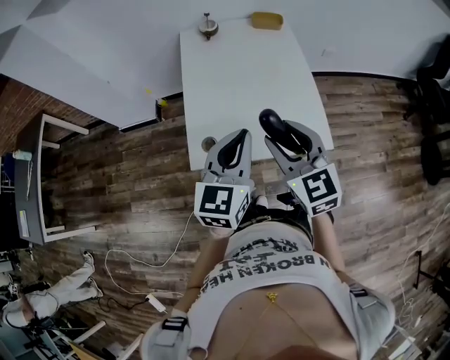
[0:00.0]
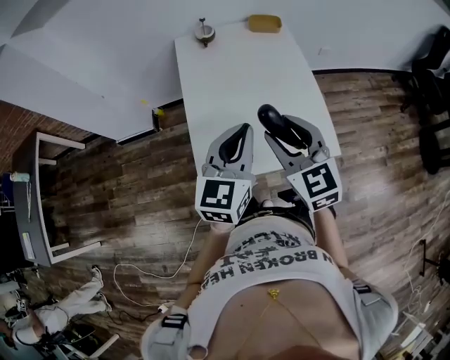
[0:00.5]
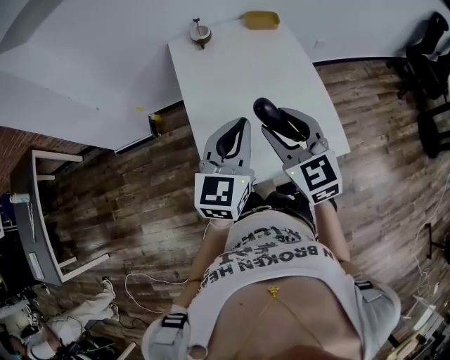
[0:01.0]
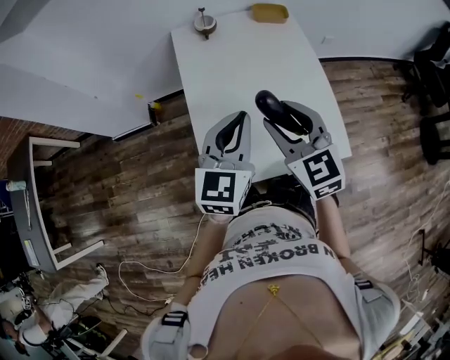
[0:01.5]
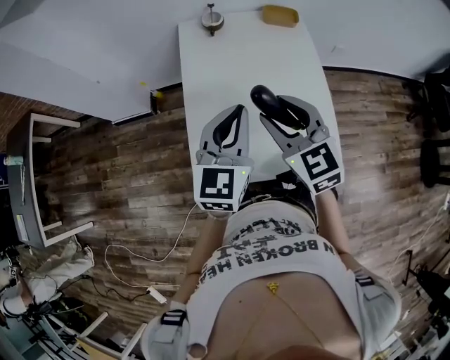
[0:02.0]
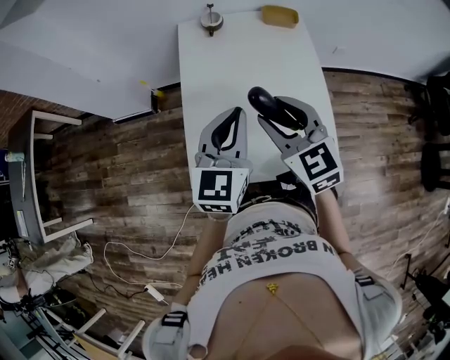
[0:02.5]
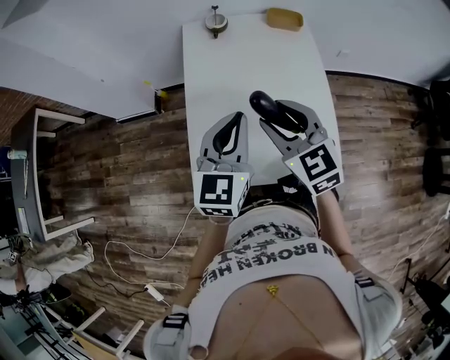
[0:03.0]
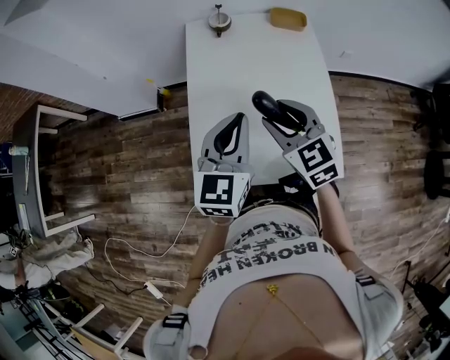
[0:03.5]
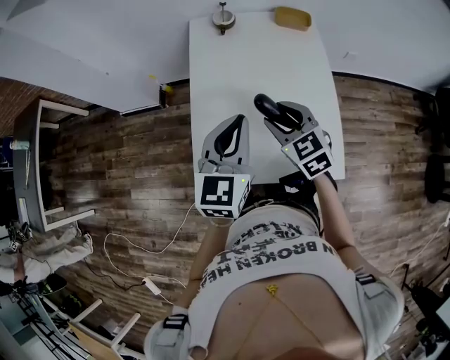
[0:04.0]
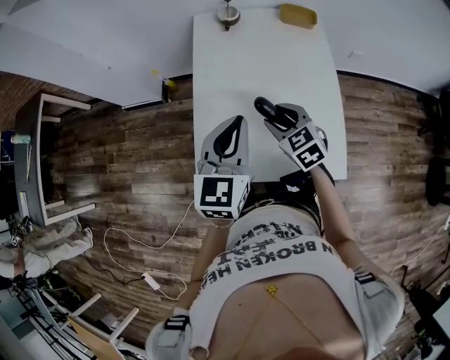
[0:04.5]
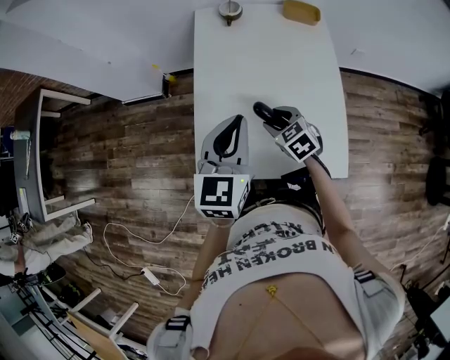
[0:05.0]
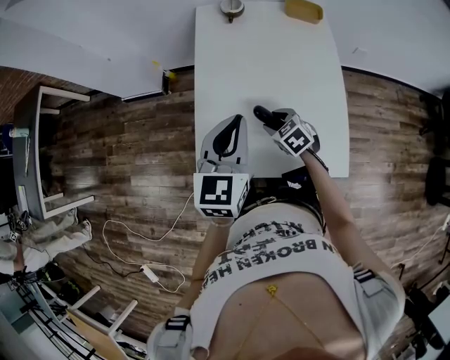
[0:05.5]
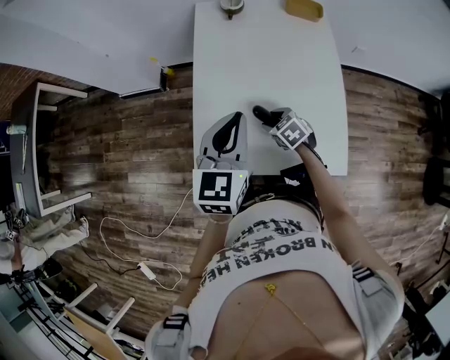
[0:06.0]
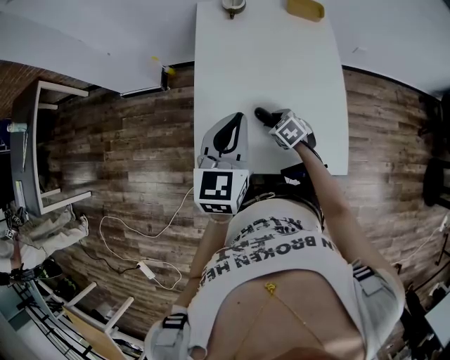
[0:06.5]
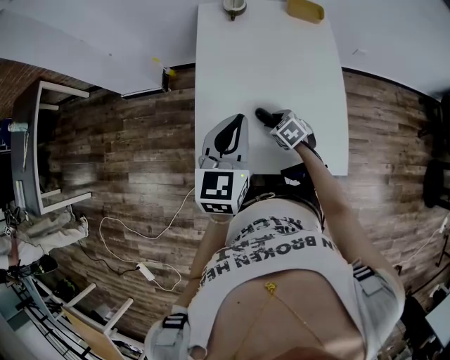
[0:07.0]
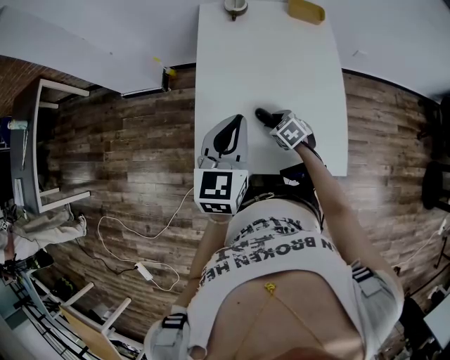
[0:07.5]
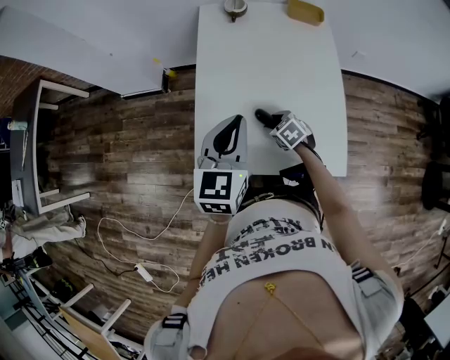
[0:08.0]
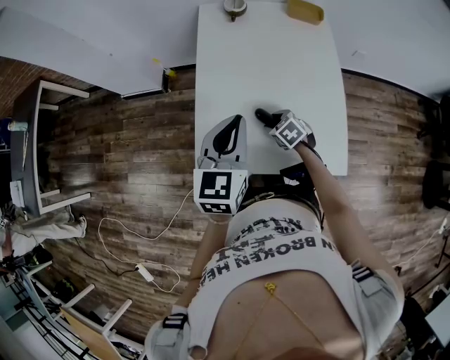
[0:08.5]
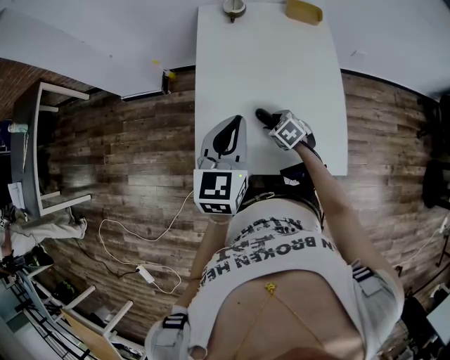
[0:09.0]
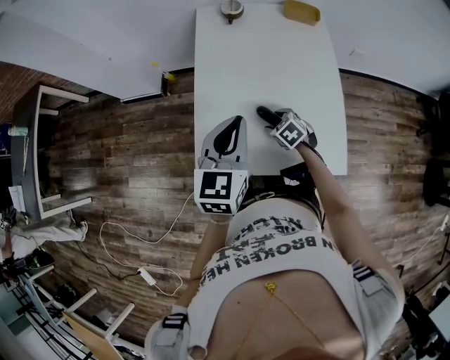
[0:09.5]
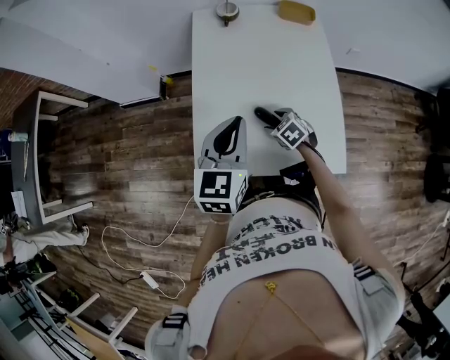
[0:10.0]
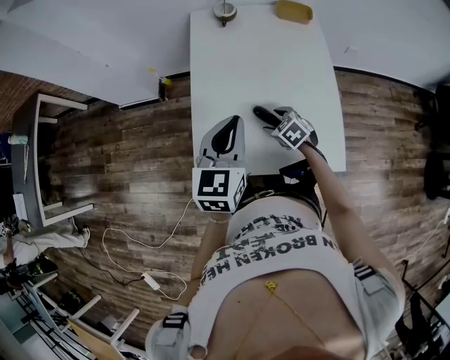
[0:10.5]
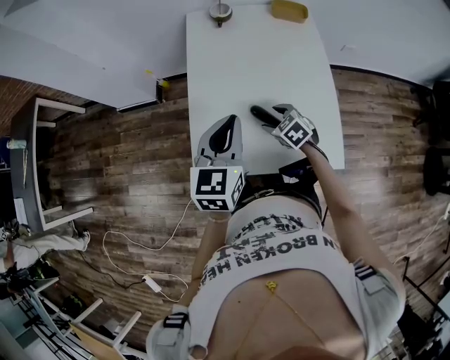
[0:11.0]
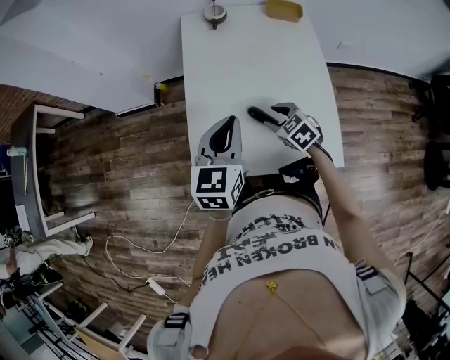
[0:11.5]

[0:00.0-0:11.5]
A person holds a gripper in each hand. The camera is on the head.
0.0 to 2.0 s: Both grippers travel together forward, some 20 cm.
2.0 to 4.0 s: The right gripper is displaced downward by about 10 cm.
4.0 to 6.0 s: The right gripper travels downward by roughly 20 cm, and changes its angle by some 30 degrees.
6.0 to 7.5 s: The grippers make only small movements.
7.5 to 9.5 s: Both grippers stay put.
9.5 to 11.5 s: The right gripper shifts some 10 cm upward.

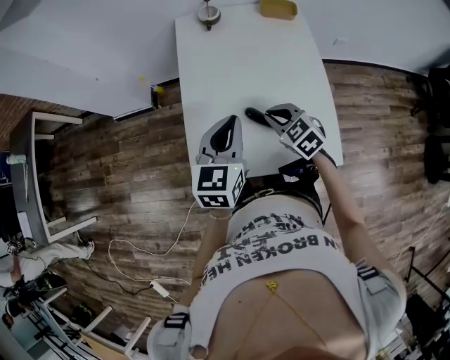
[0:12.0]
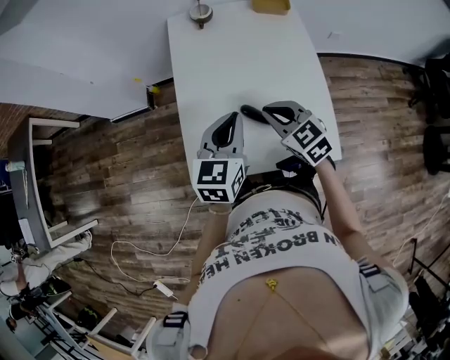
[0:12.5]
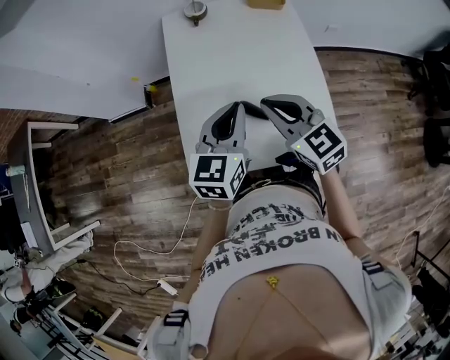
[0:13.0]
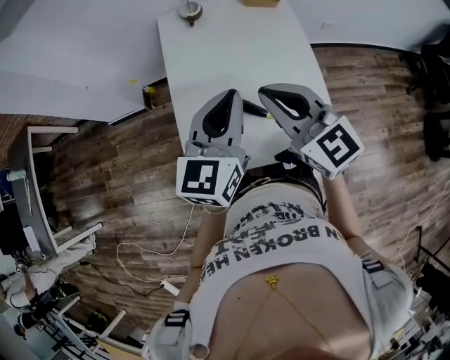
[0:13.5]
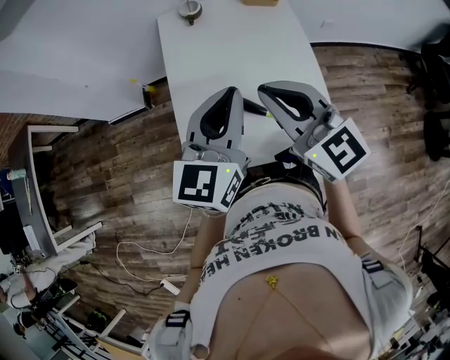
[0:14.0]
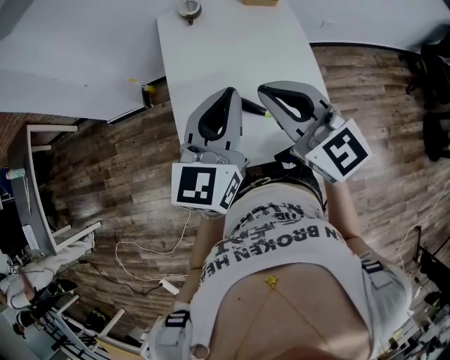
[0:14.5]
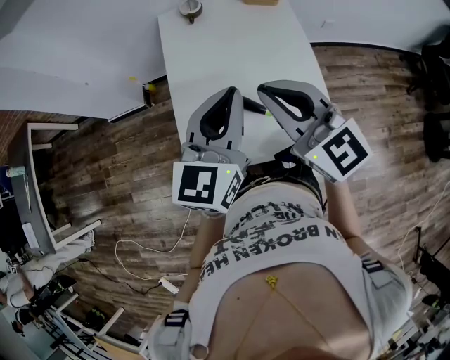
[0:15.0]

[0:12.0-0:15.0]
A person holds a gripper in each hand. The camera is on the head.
12.0 to 13.5 s: The left gripper is displaced upward by about 10 cm; the right gripper travels upward by some 20 cm, and points its fingers approximately 30 degrees further upward.
13.5 to 15.0 s: The grippers move only a little.

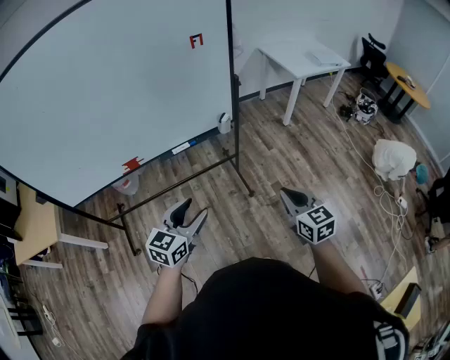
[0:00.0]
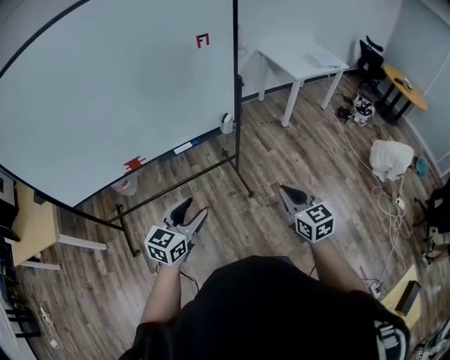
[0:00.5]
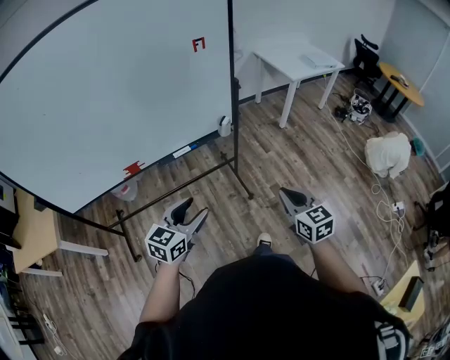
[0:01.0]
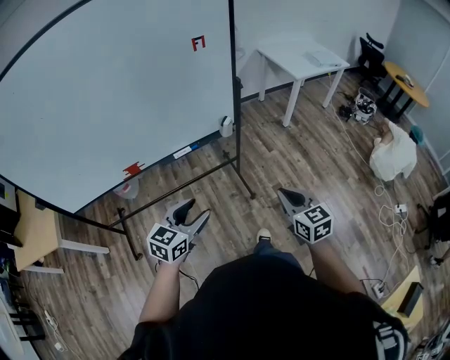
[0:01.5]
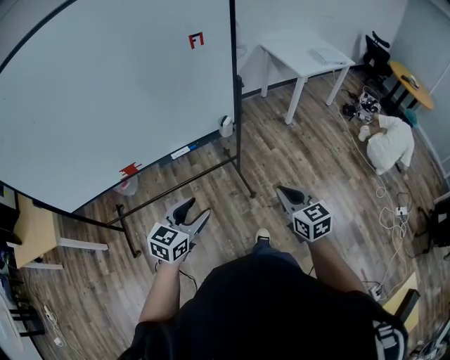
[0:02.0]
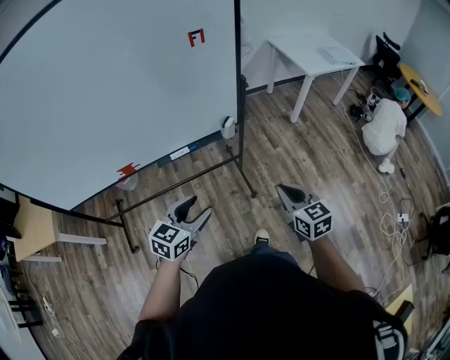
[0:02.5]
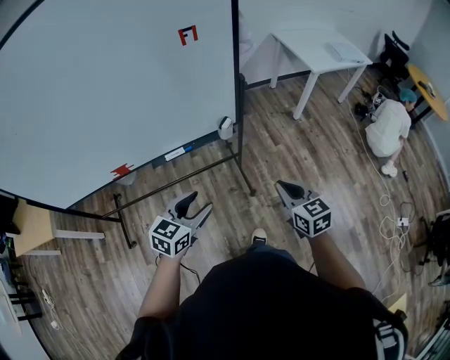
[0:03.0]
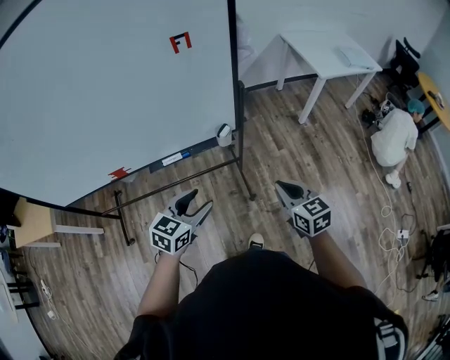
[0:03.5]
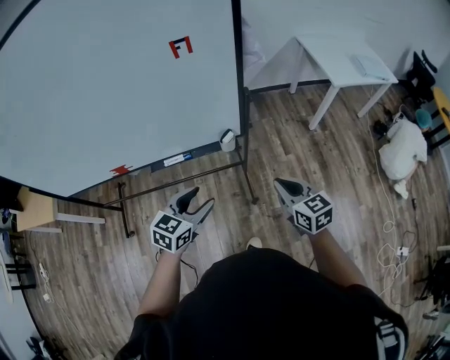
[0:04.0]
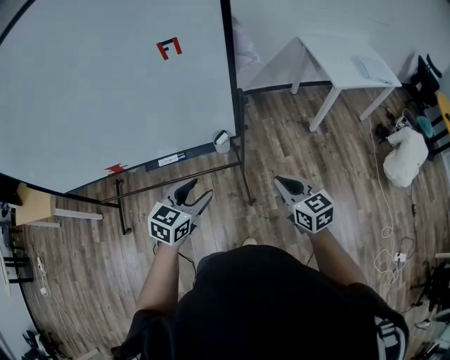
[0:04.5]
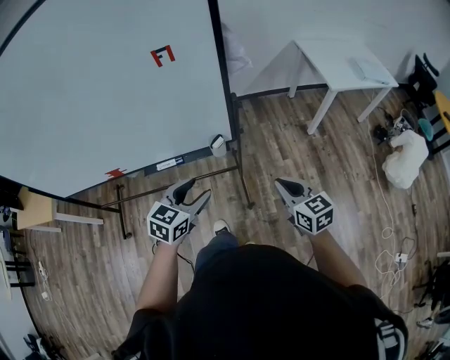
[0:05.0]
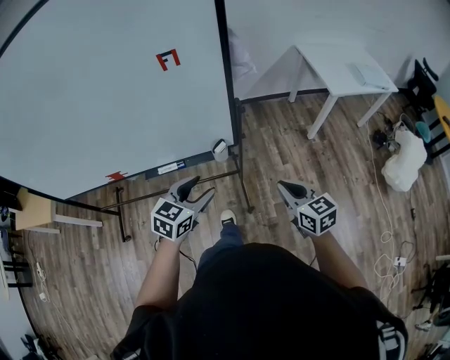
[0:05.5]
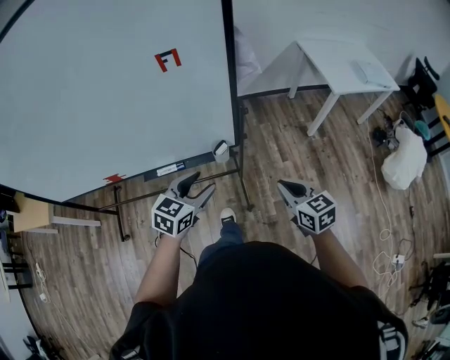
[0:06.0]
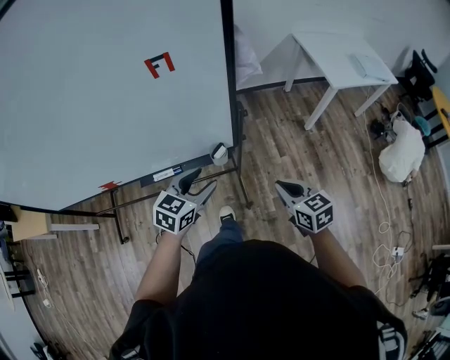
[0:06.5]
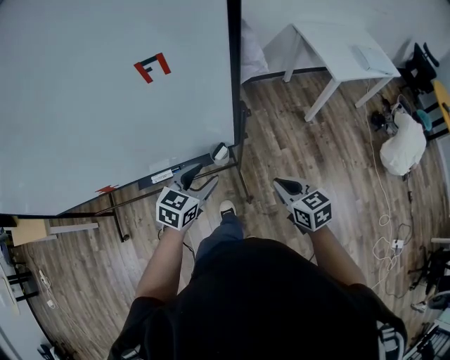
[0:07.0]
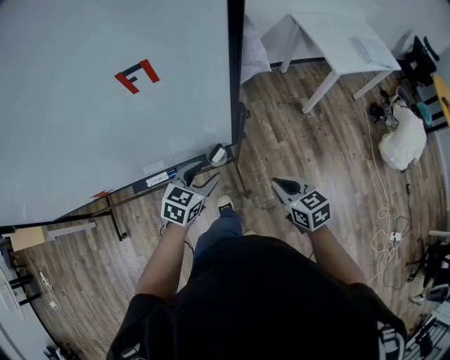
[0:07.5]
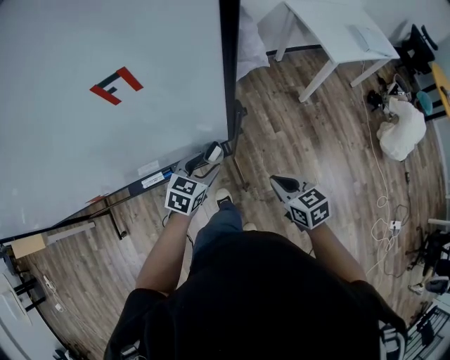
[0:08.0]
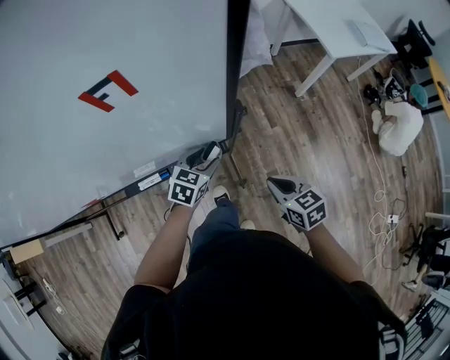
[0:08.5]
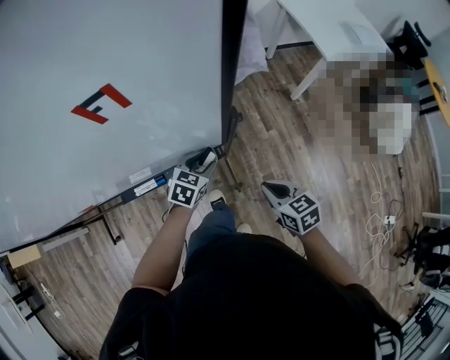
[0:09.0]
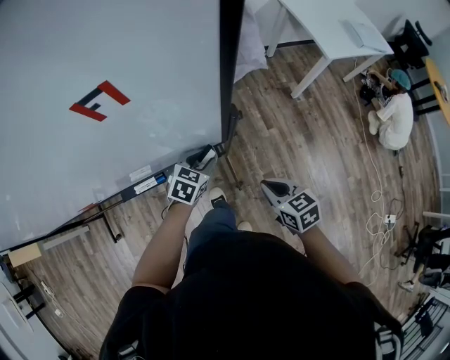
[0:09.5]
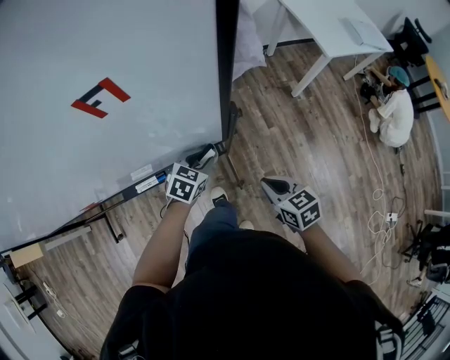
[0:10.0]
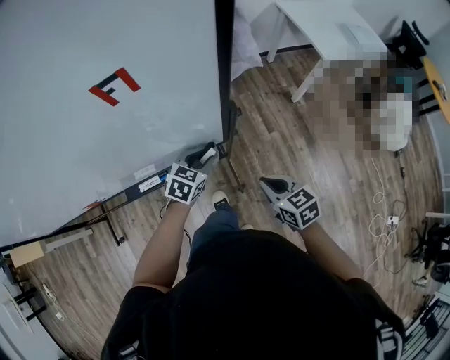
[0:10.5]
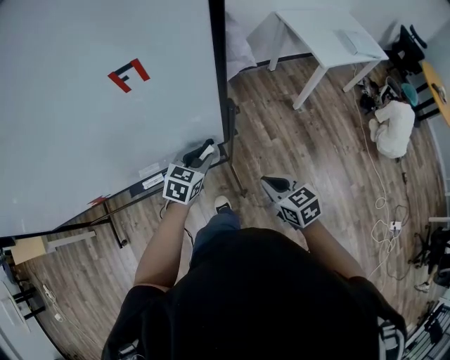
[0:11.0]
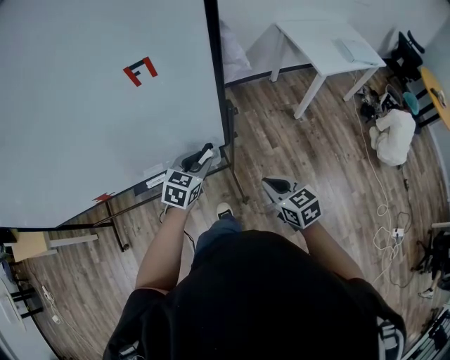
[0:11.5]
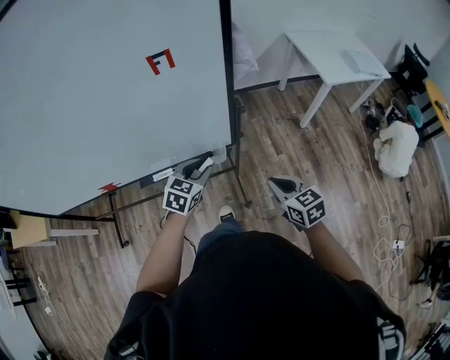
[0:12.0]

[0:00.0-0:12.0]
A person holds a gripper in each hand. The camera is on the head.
0.0 to 2.0 s: Both grippers travel together forward, about 5 cm.
2.0 to 4.0 s: The left gripper goes about 20 cm forward and to the right. Meanwhile the right gripper is displaced forward by roughly 25 cm.
4.0 to 6.0 s: The right gripper shifts about 5 cm forward. The left gripper moves forward, roughly 10 cm.
6.0 to 8.0 s: The left gripper goes roughly 20 cm forward and downward; the right gripper heads downward and forward, covering about 15 cm.
8.0 to 10.0 s: The left gripper moves some 5 cm, and closes.
10.0 to 12.0 s: The grippers both shift upward and backward by roughly 15 cm.

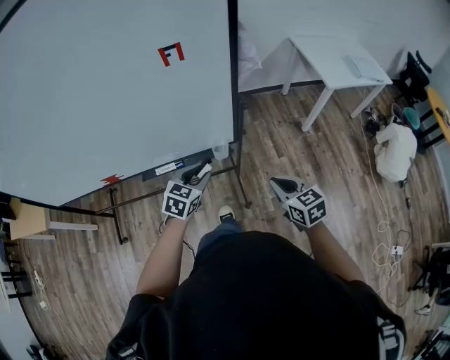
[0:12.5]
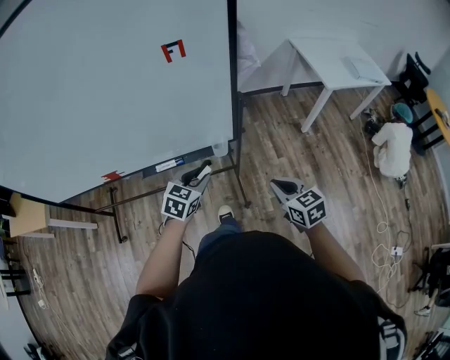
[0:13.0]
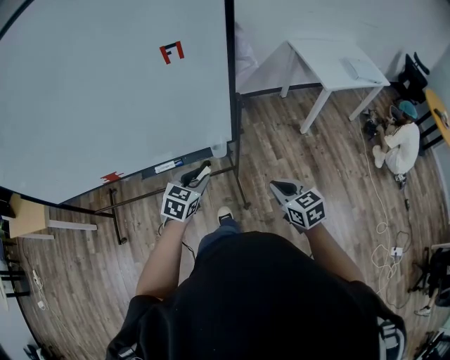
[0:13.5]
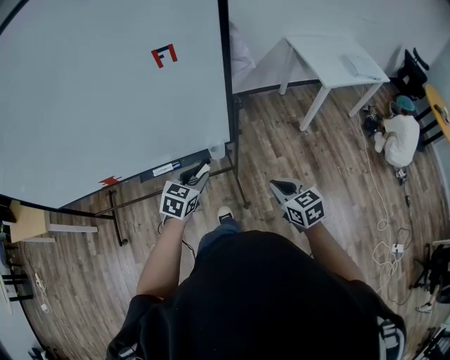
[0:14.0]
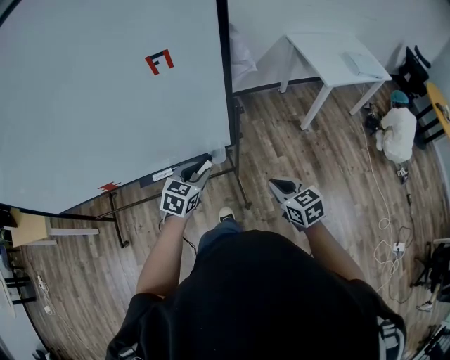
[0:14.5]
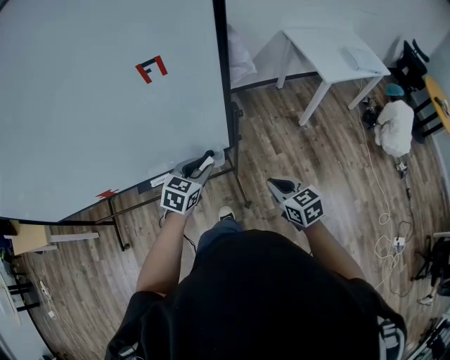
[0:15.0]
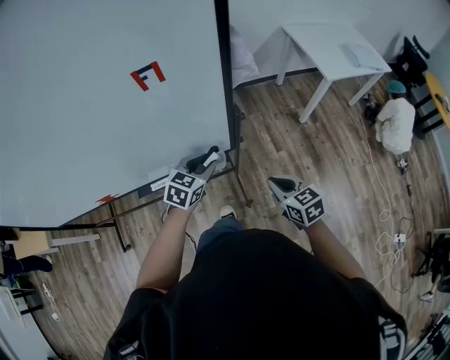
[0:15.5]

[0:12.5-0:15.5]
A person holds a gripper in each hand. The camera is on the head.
12.5 to 14.0 s: The grippers move only a little.
14.0 to 15.5 s: Both grippers move forward, about 10 cm.
